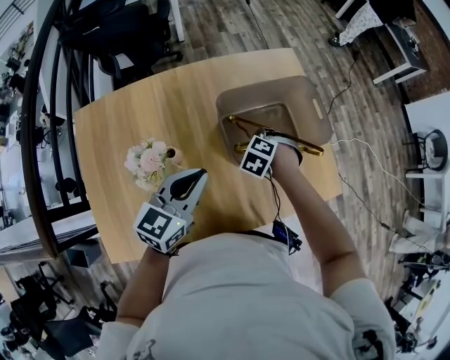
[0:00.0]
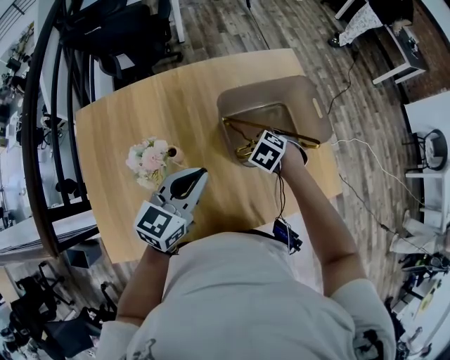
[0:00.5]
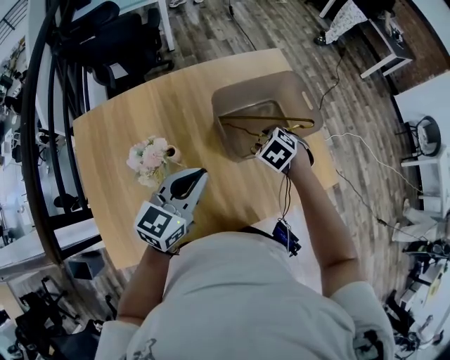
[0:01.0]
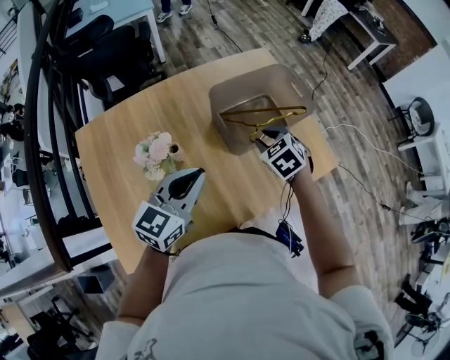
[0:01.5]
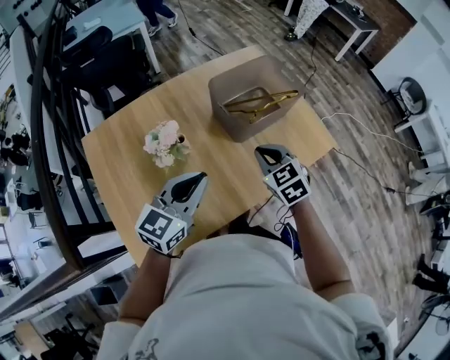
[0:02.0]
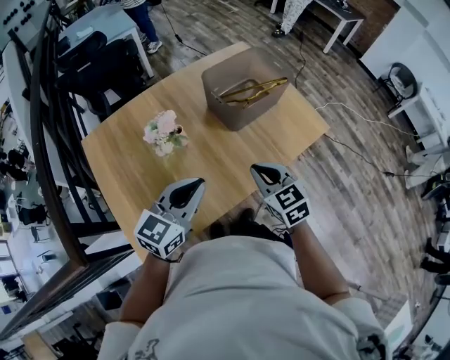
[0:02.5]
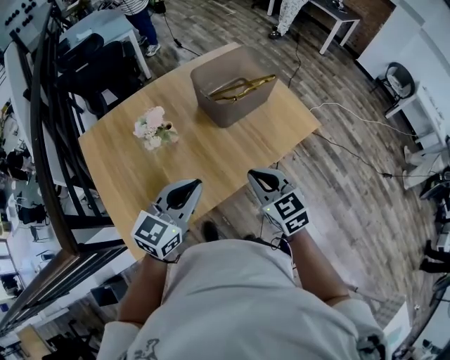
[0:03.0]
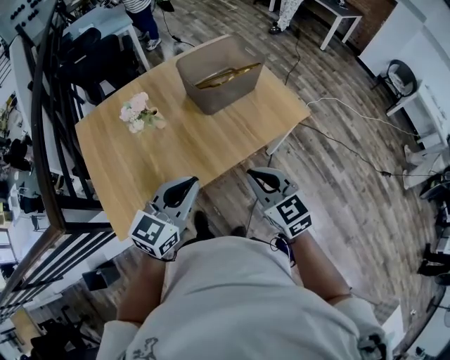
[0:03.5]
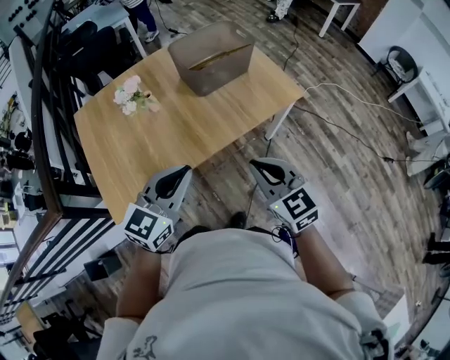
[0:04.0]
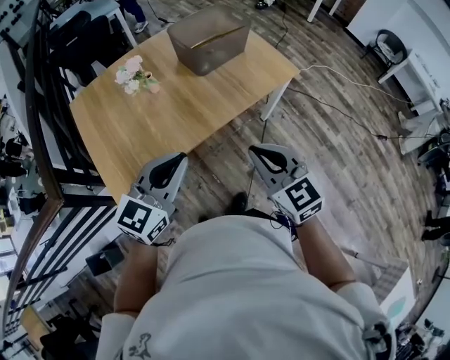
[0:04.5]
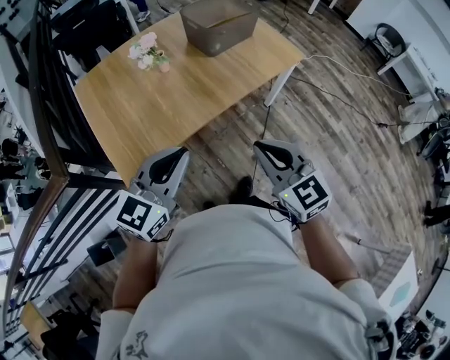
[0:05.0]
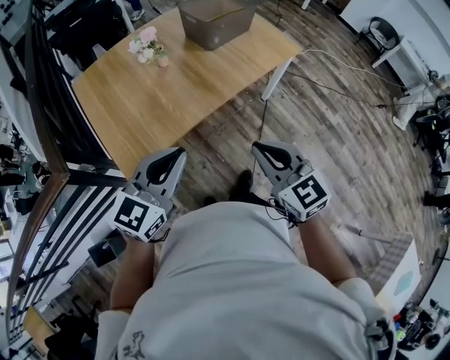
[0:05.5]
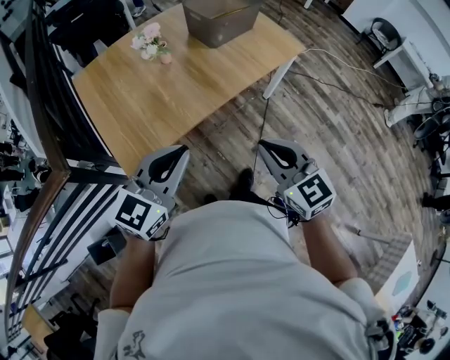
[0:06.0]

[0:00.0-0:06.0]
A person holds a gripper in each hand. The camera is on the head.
0.0 to 2.0 s: The left gripper ends up some 15 cm from where it was. Meanwhile the right gripper moves about 25 cm, angles its fingers upward, by some 40 degrees, and closes.
2.0 to 4.0 s: The grippers both shift backward and to the right by some 30 cm. The right gripper changes its angle by about 20 degrees.
4.0 to 6.0 s: The two grippers go some 20 cm backward and to the left.

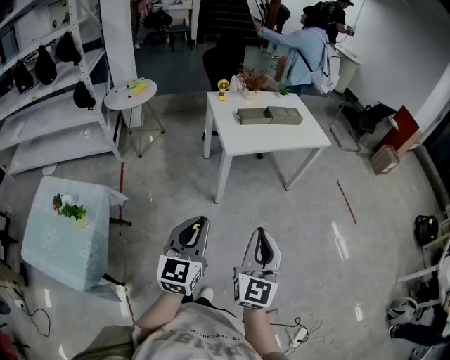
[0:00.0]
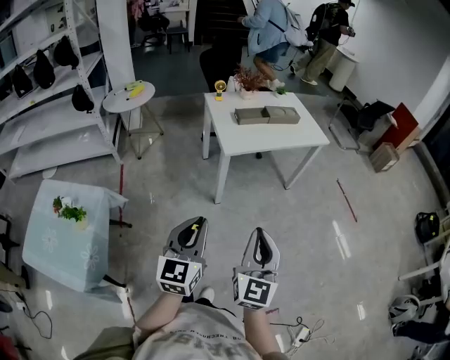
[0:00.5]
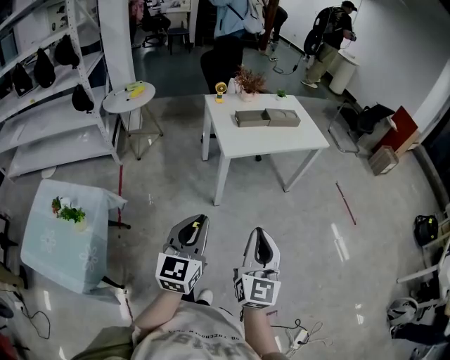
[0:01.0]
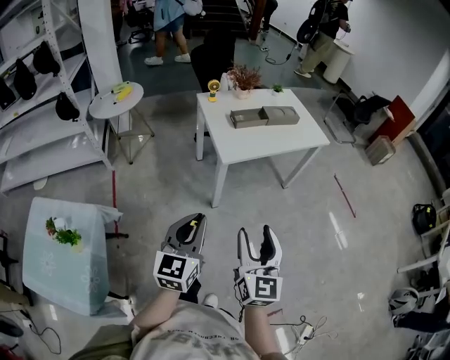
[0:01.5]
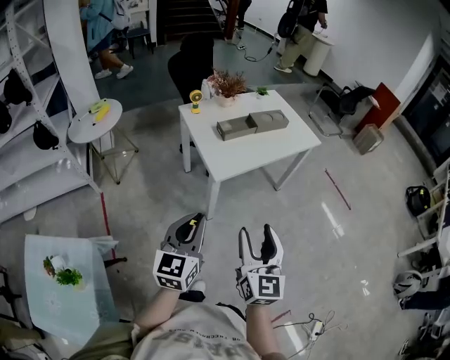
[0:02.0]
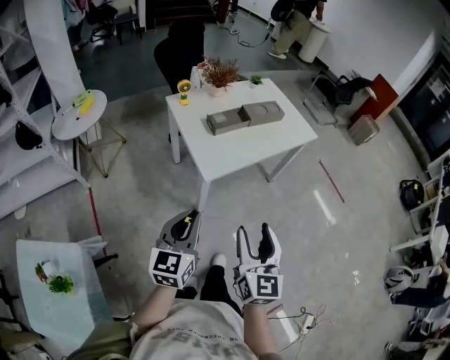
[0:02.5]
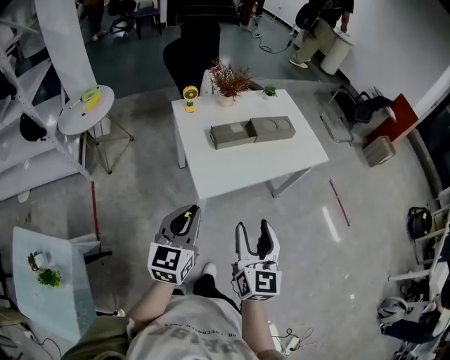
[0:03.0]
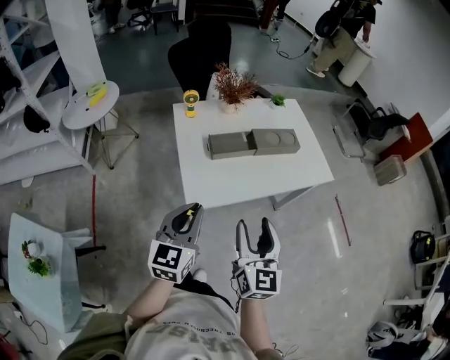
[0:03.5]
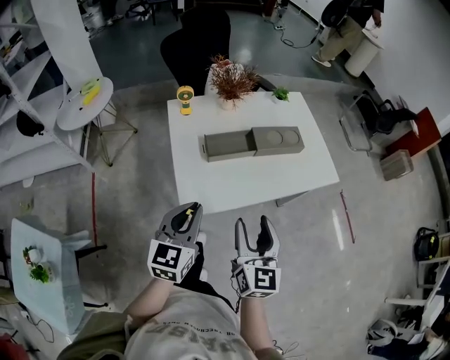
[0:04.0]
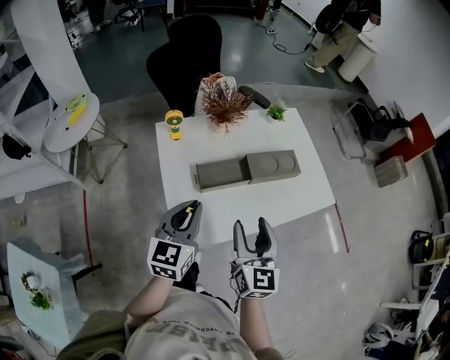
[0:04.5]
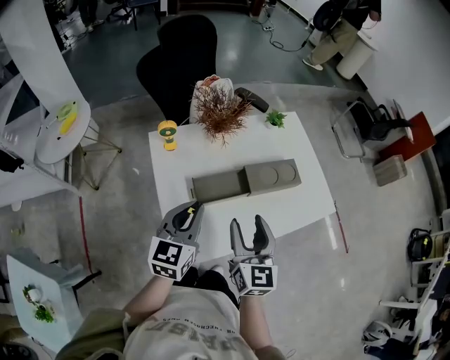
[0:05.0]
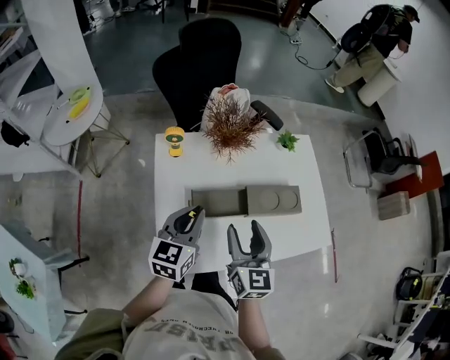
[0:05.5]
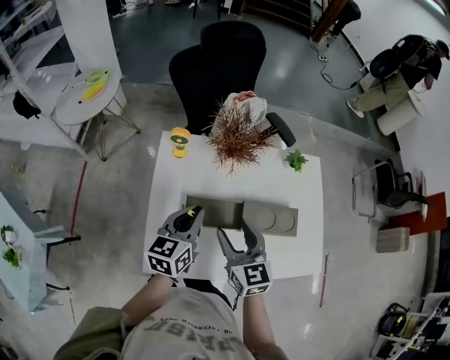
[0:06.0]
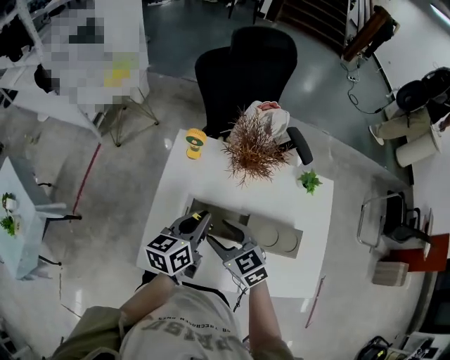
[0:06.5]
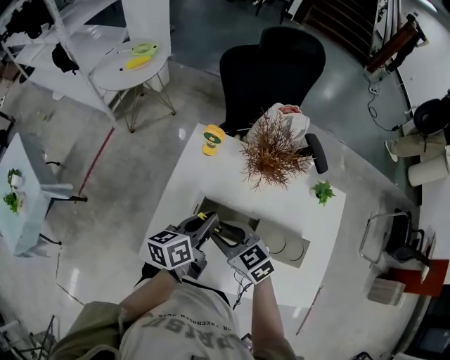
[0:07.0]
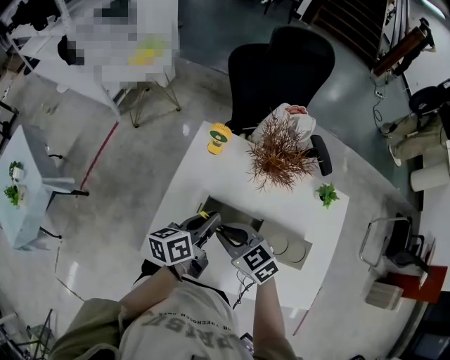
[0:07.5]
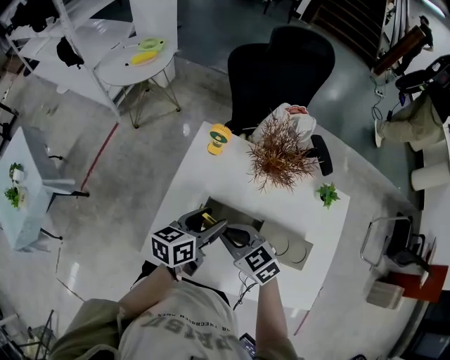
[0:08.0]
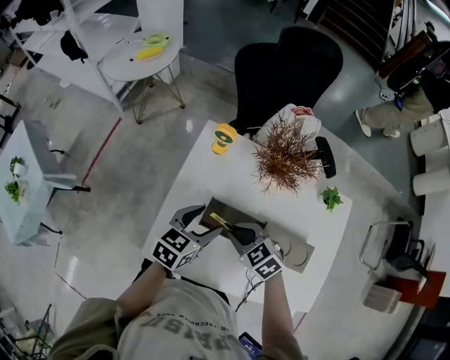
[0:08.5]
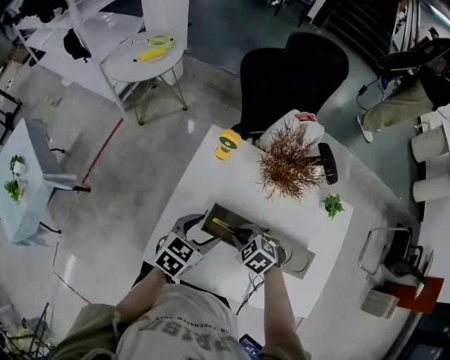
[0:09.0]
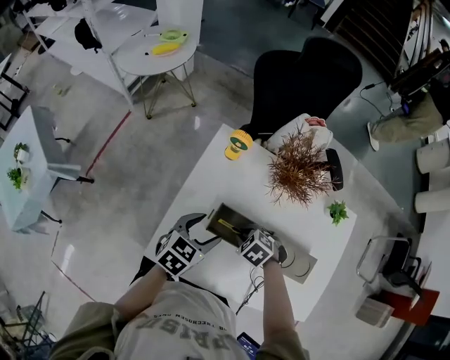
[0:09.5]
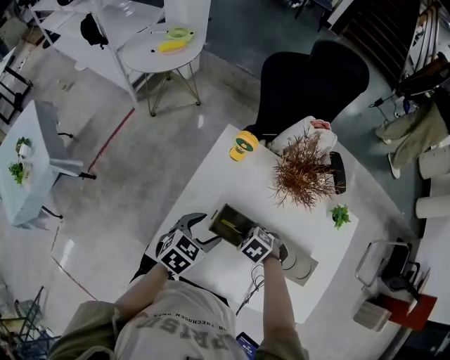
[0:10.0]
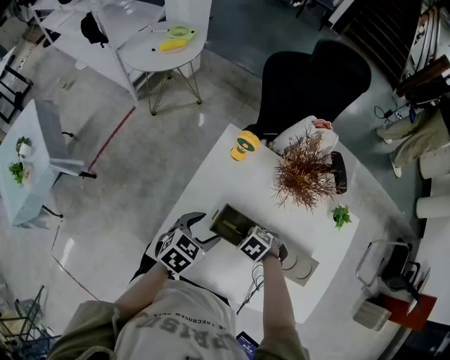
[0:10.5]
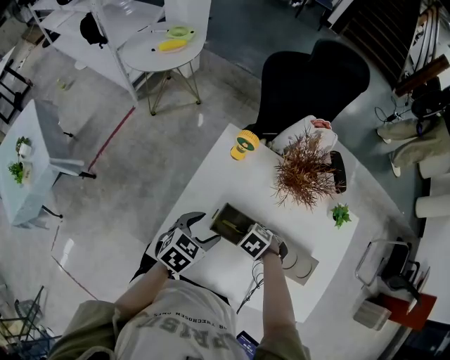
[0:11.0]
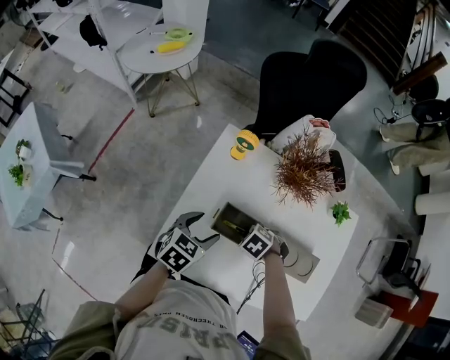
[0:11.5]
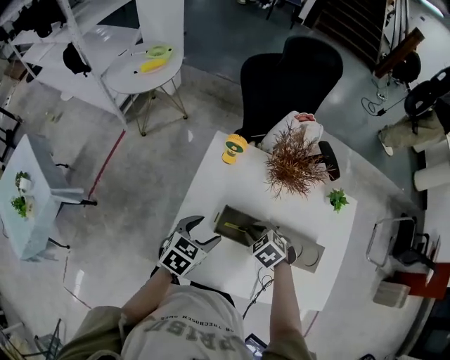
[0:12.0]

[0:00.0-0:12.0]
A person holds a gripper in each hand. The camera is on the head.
0.0 to 2.0 s: Both grippers move forward, approximately 20 cm. The right gripper opens its fingers.
2.0 to 4.0 s: Both grippers travel together forward, about 30 cm.
4.0 to 6.0 s: The grippers both shift forward by roughly 30 cm. The left gripper rotates about 20 degrees; the right gripper swivels approximately 40 degrees.
6.0 to 8.0 s: The left gripper ends up about 5 cm from where it was, changes its angle by about 20 degrees, and opens. The right gripper moves downward, some 10 cm, swivels roughly 50 degrees, and closes its fingers.
8.0 to 10.0 s: The left gripper heads downward, covering approximately 5 cm, and swivels roughly 40 degrees. The right gripper is displaced downward by approximately 15 cm, and angles its fingers downward, by roughly 40 degrees.
10.0 to 12.0 s: The right gripper shifts some 5 cm upward.

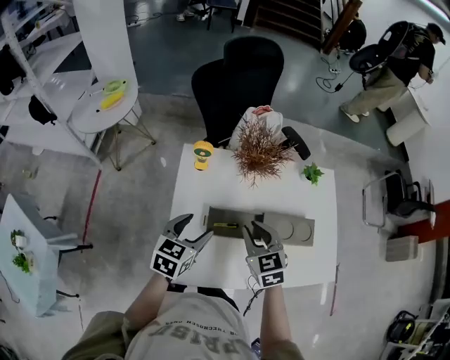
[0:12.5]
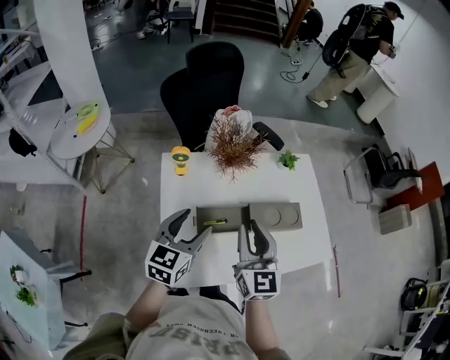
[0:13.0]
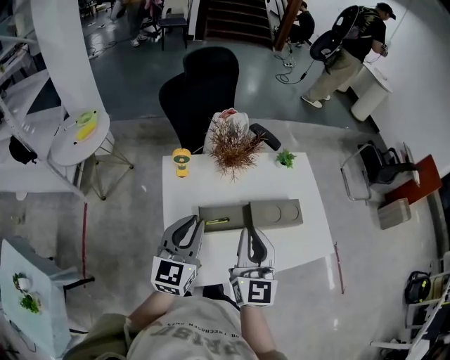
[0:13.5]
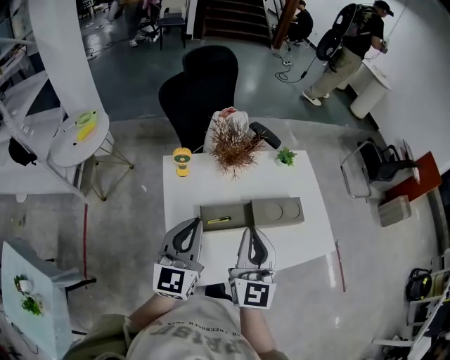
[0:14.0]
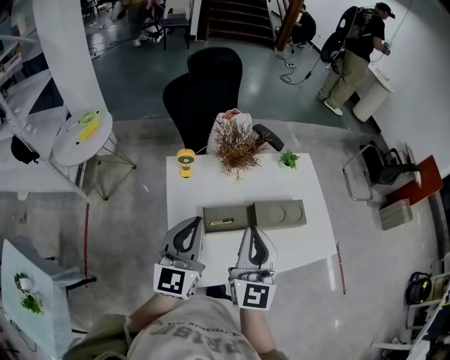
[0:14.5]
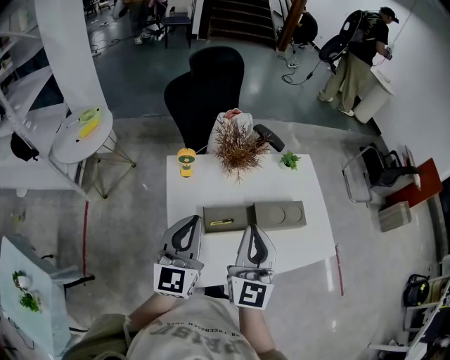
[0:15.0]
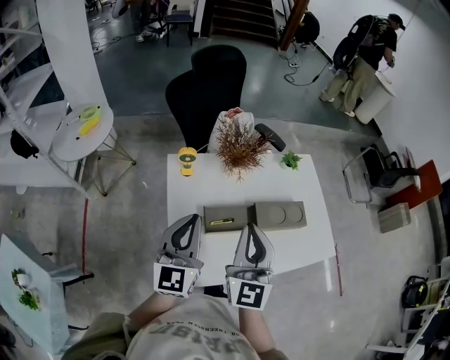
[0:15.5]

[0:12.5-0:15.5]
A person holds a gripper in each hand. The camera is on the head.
12.5 to 14.0 s: The right gripper moves upward and backward, some 20 cm, and points its fingers approximately 40 degrees further upward; the left gripper shifts some 15 cm upward, points its fingers approximately 30 degrees further upward, and closes its fingers.
14.0 to 15.5 s: The grippers make only small movements.

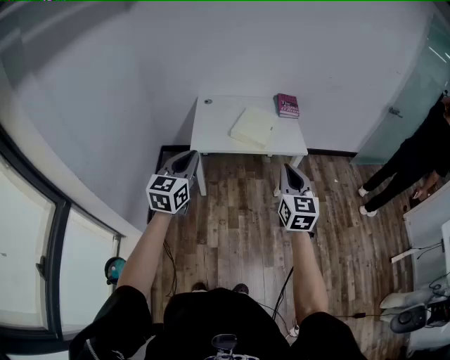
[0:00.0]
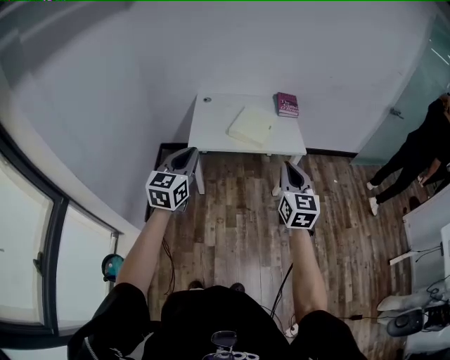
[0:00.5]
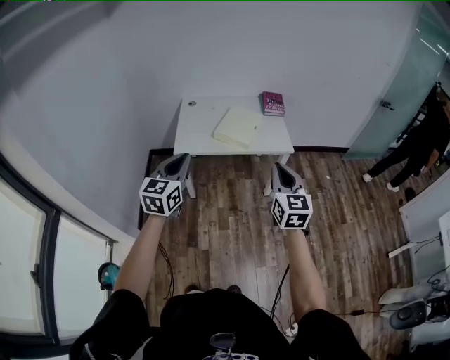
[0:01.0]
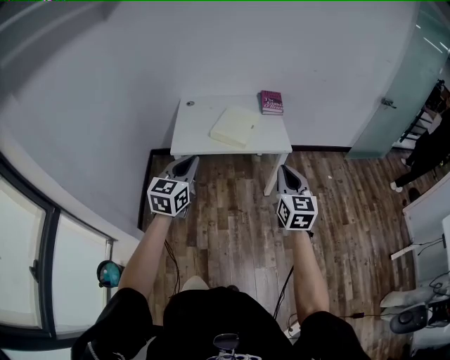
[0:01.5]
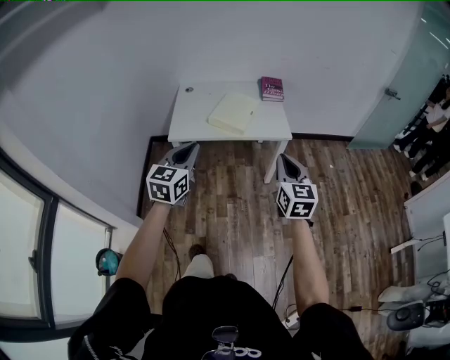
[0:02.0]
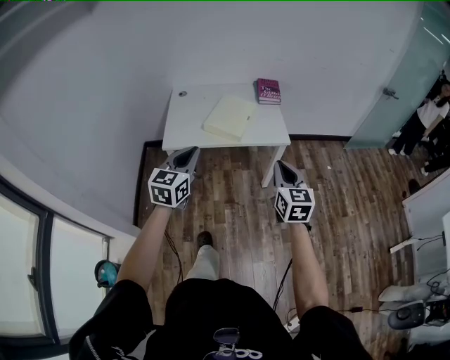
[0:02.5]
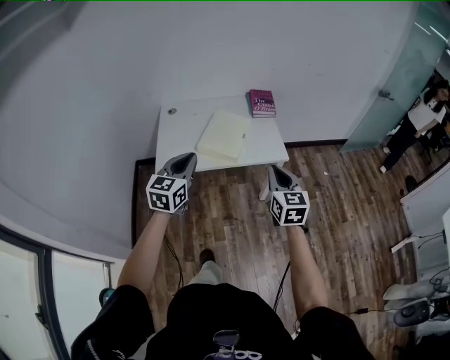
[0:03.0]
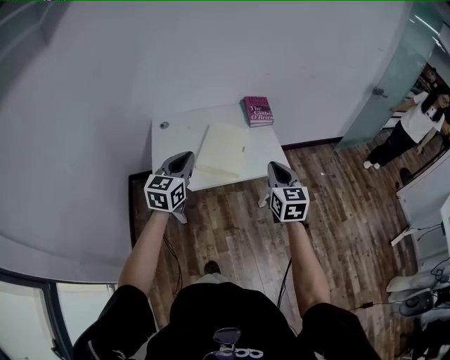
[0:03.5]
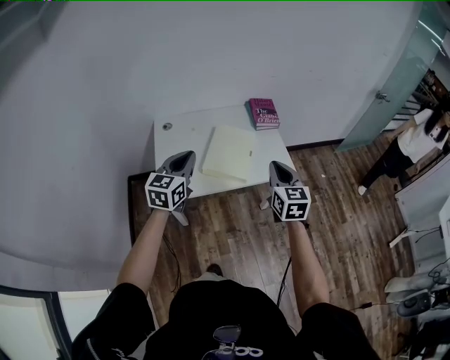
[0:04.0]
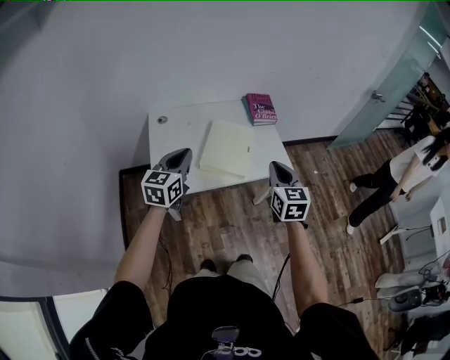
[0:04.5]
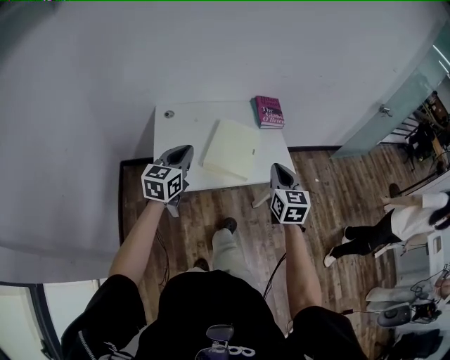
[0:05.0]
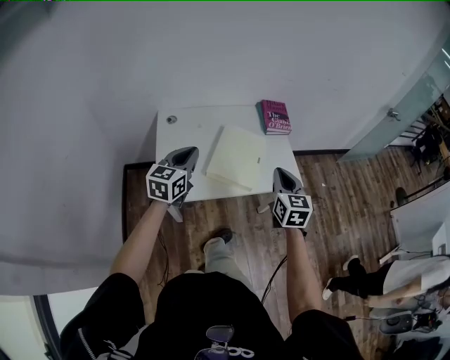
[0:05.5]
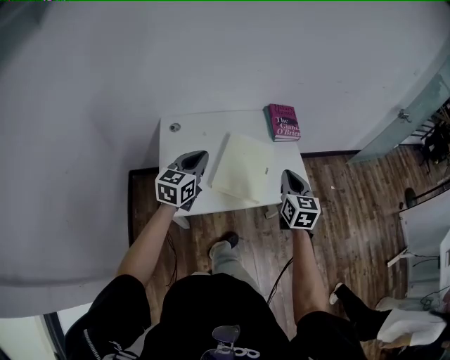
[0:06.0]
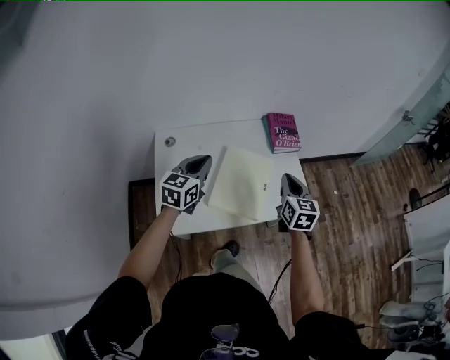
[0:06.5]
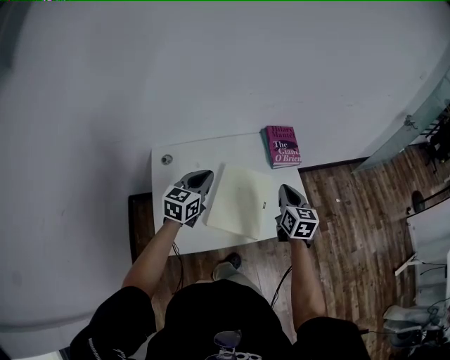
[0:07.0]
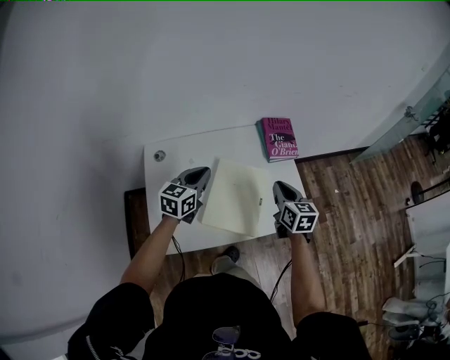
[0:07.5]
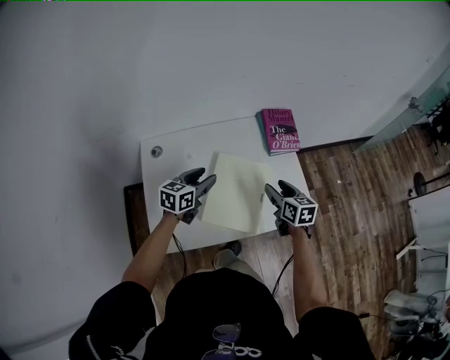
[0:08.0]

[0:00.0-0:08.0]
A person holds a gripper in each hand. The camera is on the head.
0.0 to 2.0 s: Both grippers travel together to the right, approximately 15 cm.
2.0 to 4.0 s: The two grippers go about 35 cm forward and to the left.
4.0 to 6.0 s: Both grippers move forward and downward, roughly 15 cm.
6.0 to 8.0 s: The grippers both shift forward and downward by roughly 20 cm. The left gripper rotates some 20 degrees, and opens its fingers; the right gripper swivels approximately 30 degrees, and opens.
